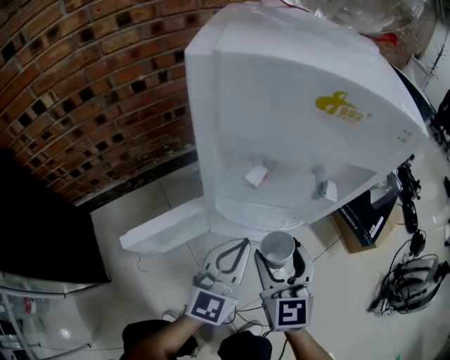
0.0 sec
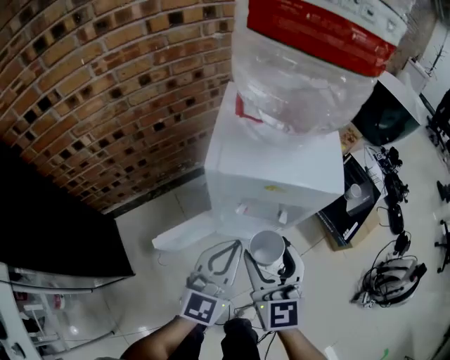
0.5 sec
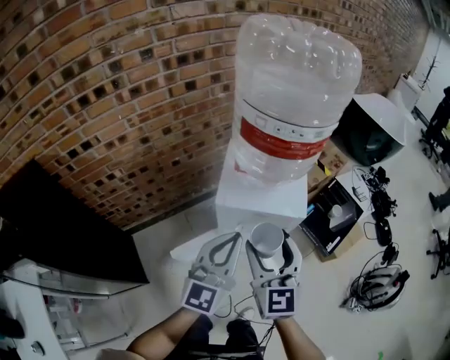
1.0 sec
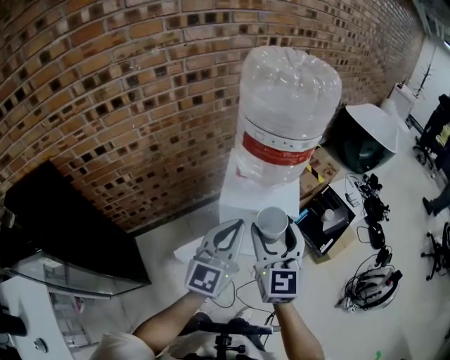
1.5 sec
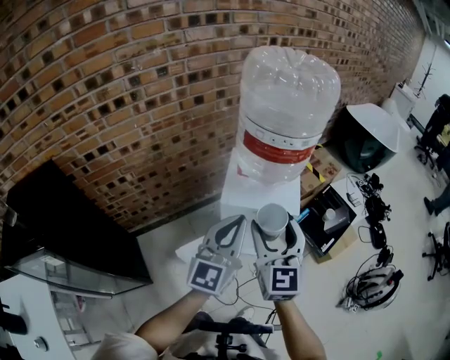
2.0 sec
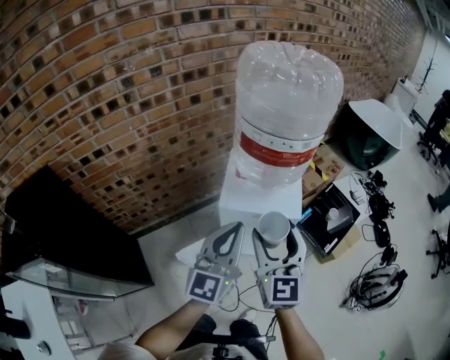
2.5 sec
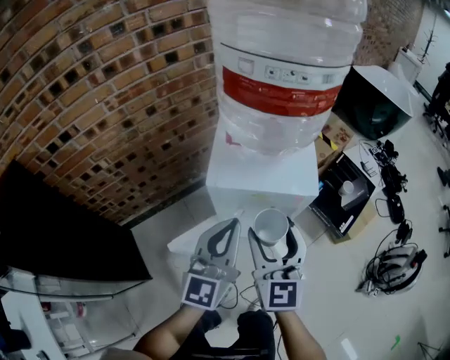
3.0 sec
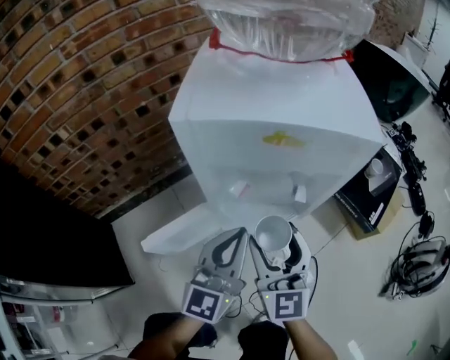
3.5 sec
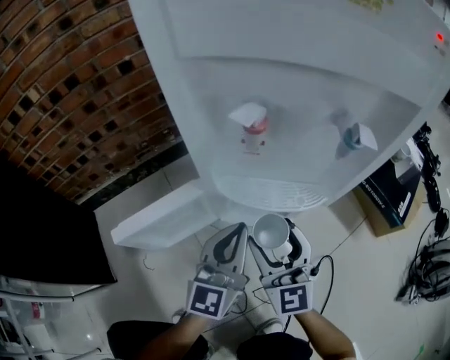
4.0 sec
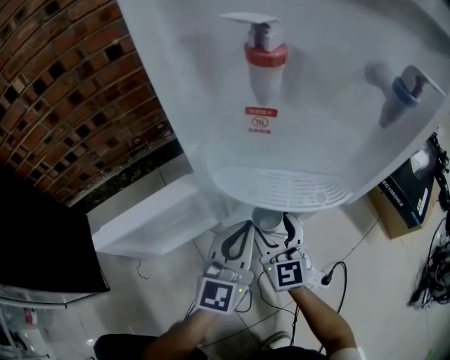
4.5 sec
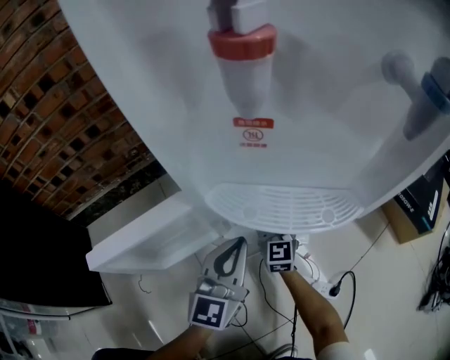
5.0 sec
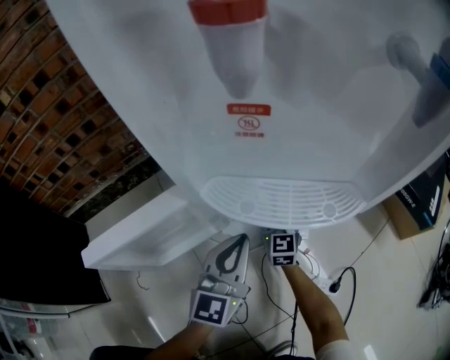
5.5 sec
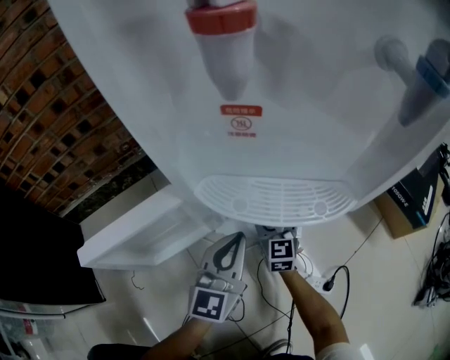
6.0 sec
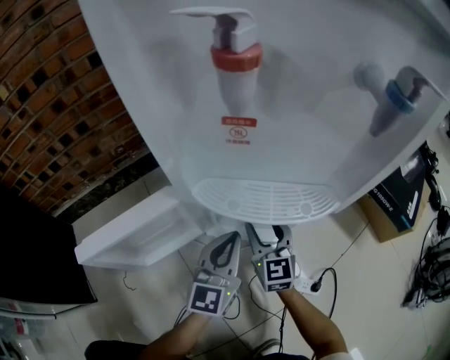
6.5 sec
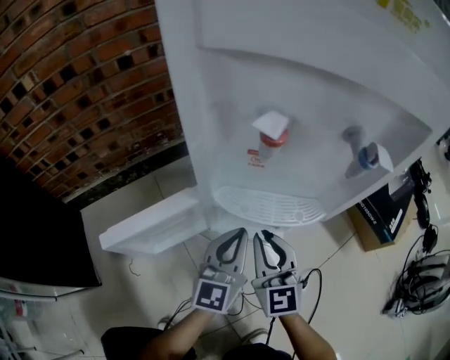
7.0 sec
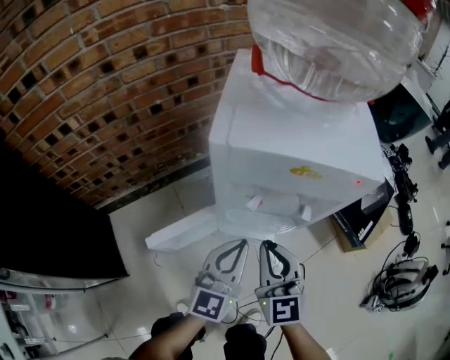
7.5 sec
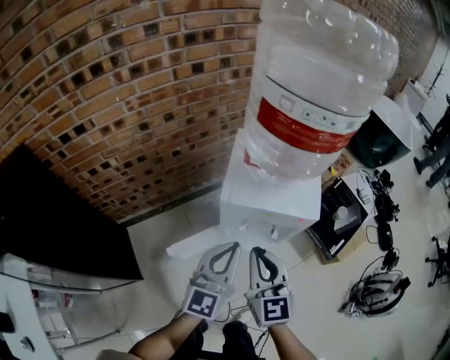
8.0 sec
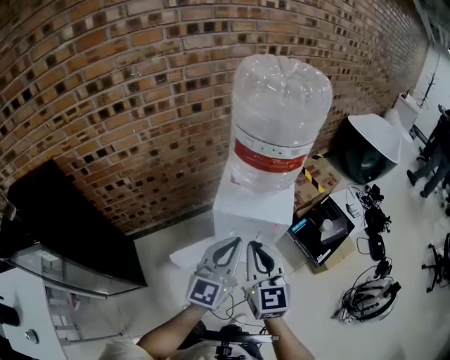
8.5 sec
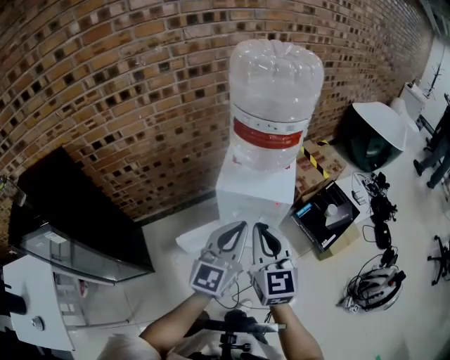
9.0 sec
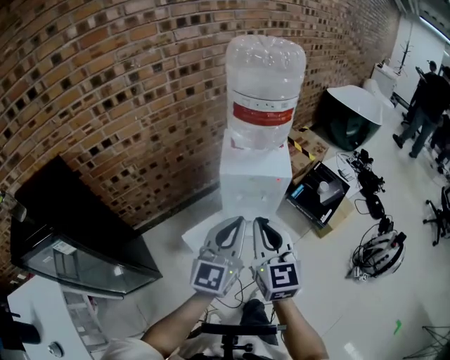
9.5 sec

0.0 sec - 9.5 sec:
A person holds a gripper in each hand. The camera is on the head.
0.0 sec - 2.0 sec: Both grippers travel together upward, about 50 cm.
2.0 sec - 4.0 sec: Both grippers travel together downward, about 60 cm.
4.0 sec - 5.5 sec: The right gripper heads downward and forward, covering about 30 cm, while the left gripper moves downward, roughly 15 cm.
5.5 sec - 7.5 sec: The right gripper is displaced upward and backward by about 50 cm, and closes its fingers. Meanwhile the left gripper travels upward by about 30 cm.
7.5 sec - 9.5 sec: The right gripper heads upward and backward, covering about 40 cm, while the left gripper moves upward, some 40 cm.

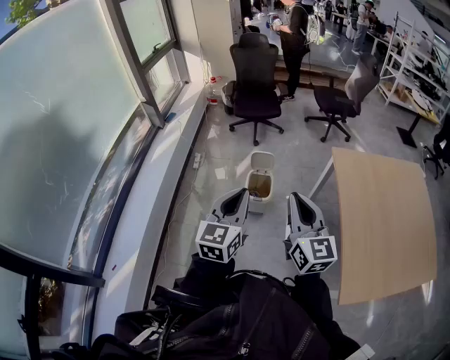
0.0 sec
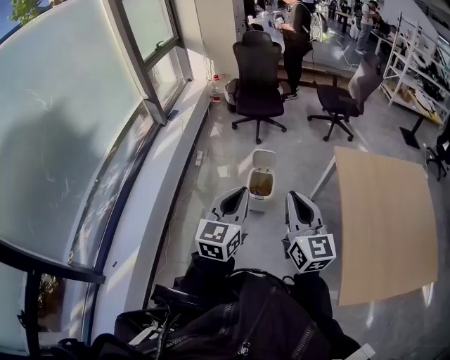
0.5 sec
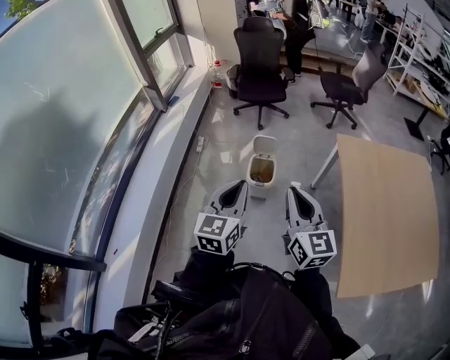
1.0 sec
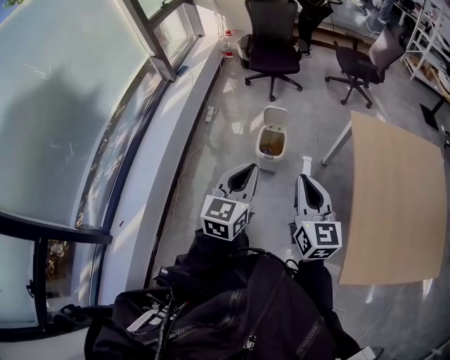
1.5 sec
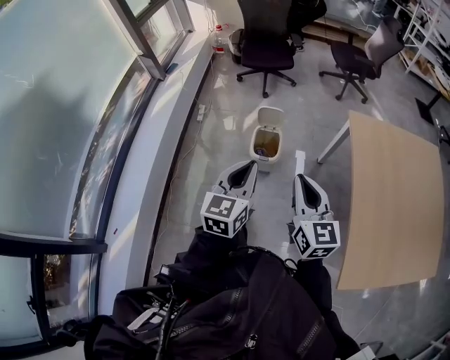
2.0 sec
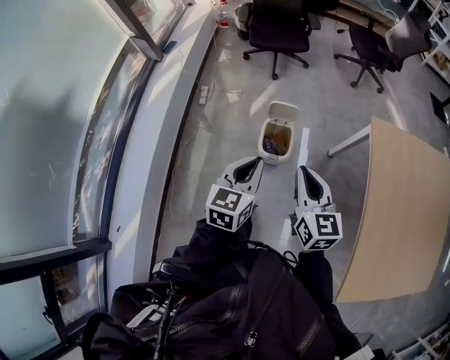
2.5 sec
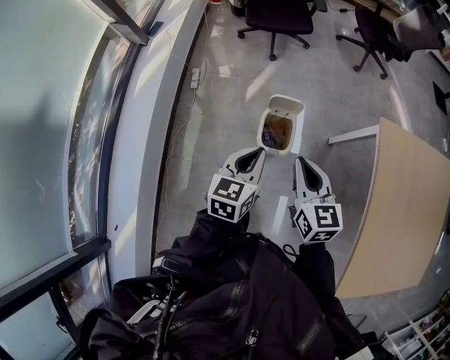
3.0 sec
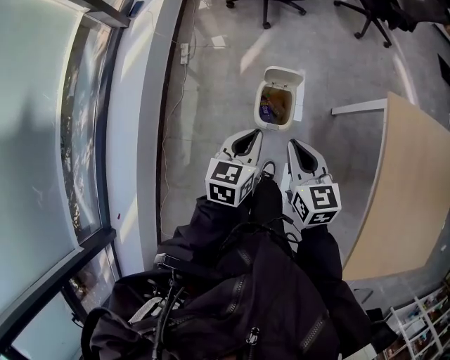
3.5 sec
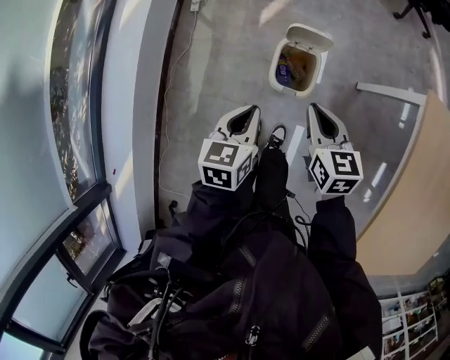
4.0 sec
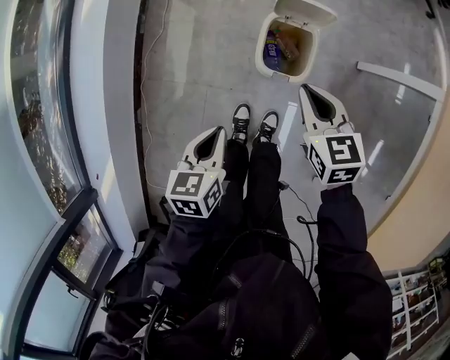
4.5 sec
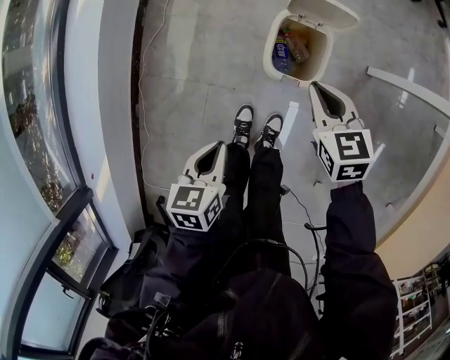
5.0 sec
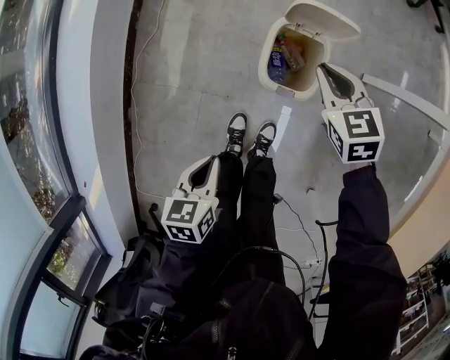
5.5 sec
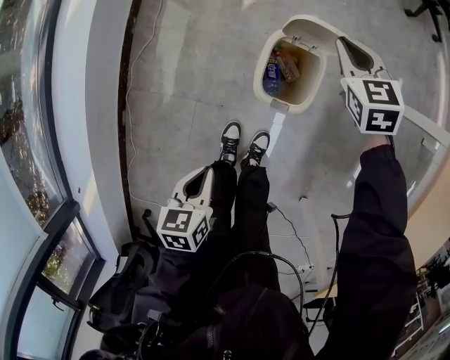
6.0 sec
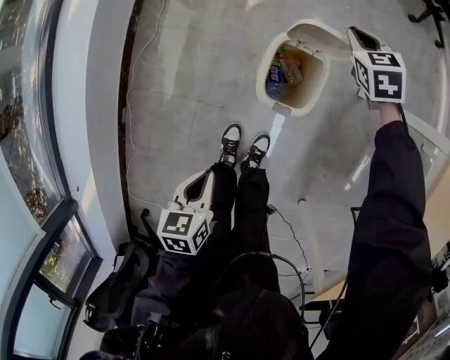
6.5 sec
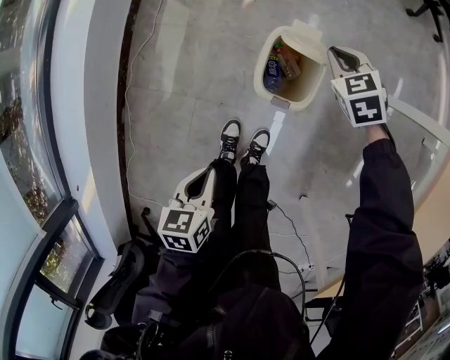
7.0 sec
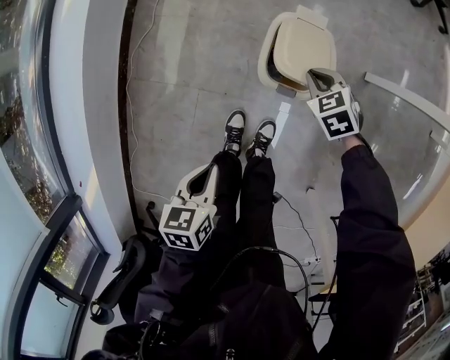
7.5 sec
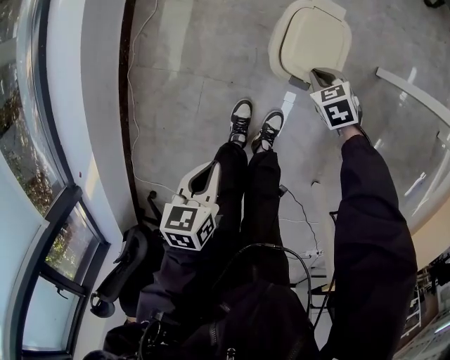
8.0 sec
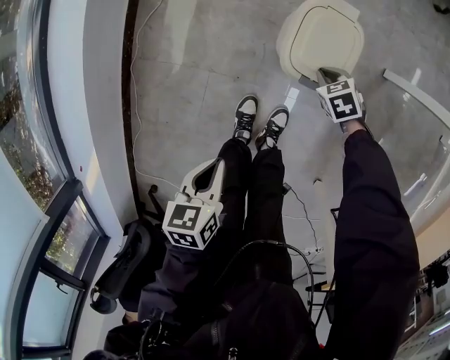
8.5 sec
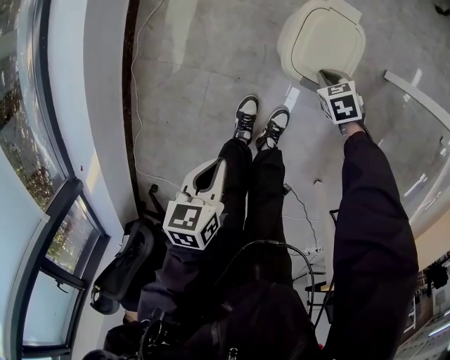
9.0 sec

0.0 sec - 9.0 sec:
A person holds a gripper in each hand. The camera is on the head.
0.0 sec - 2.0 sec: The right gripper travels downward by about 10 cm; the left gripper travels downward and forward by about 10 cm.
2.0 sec - 4.5 sec: Both grippers travel together downward and forward, approximately 50 cm. The right gripper points its fingers some 30 degrees further downward. Meanwhile the left gripper points its fingers roughly 40 degrees further downward.
4.5 sec - 7.0 sec: The right gripper shifts approximately 20 cm forward and downward, and turns by some 30 degrees, while the left gripper travels downward by approximately 10 cm.
7.0 sec - 9.0 sec: The left gripper moves approximately 5 cm, while the right gripper is displaced downward and backward by approximately 25 cm, and changes its angle by roughly 20 degrees.

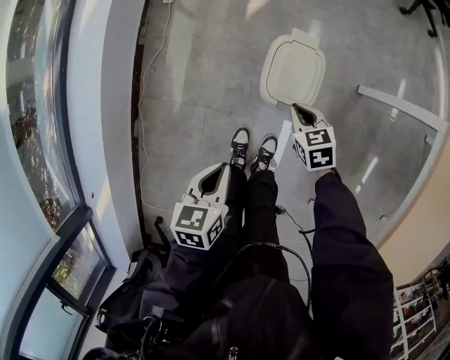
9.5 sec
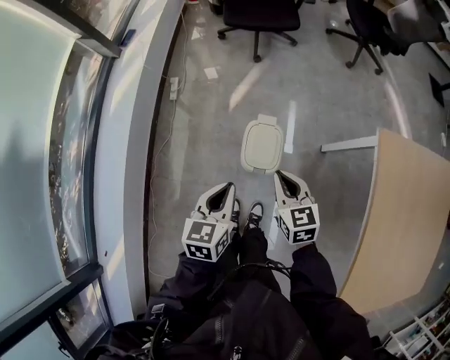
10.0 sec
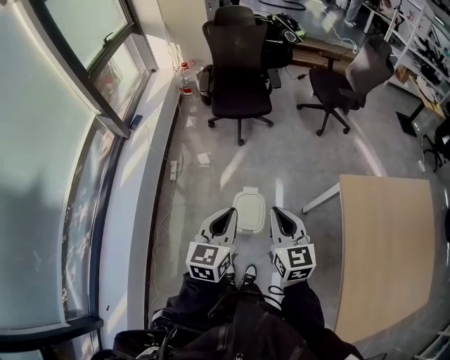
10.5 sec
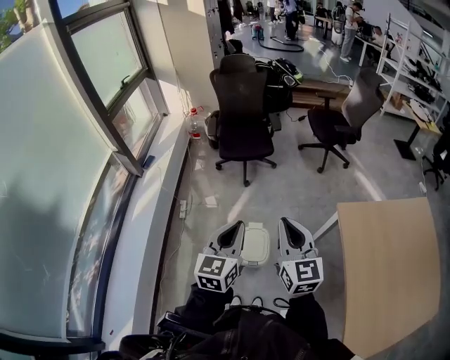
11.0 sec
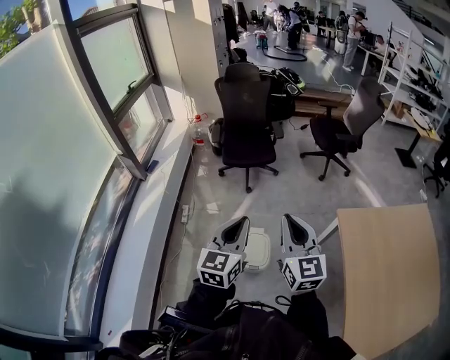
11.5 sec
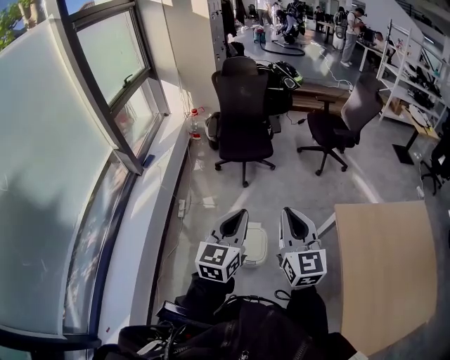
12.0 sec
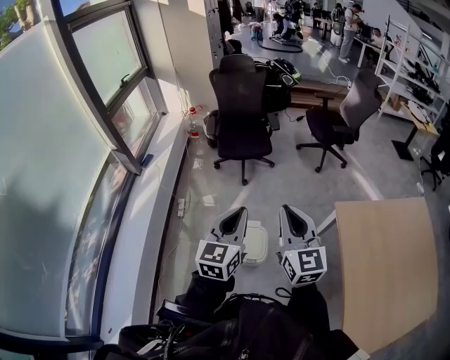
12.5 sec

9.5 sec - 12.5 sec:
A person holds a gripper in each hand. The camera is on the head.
9.5 sec - 11.0 sec: Both grippers move upward, approximately 60 cm. The left gripper points its fingers approximately 40 degrees further upward. The right gripper tips its fingers upward by approximately 50 degrees.
11.0 sec - 12.5 sec: The grippers stay close to where they were, moving slightly.

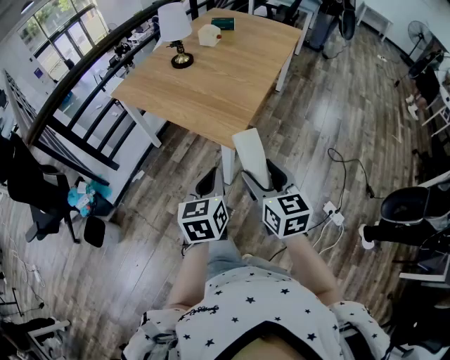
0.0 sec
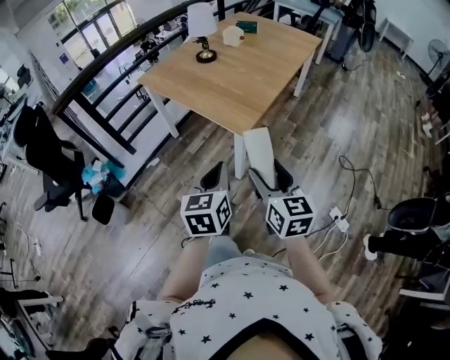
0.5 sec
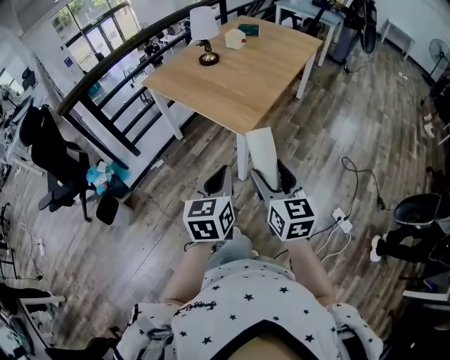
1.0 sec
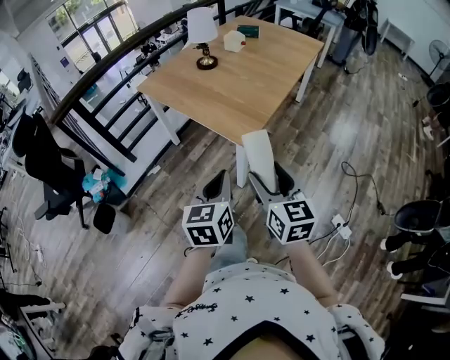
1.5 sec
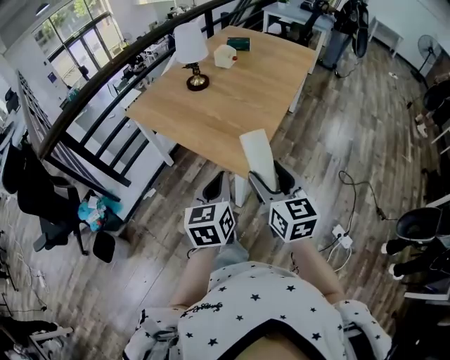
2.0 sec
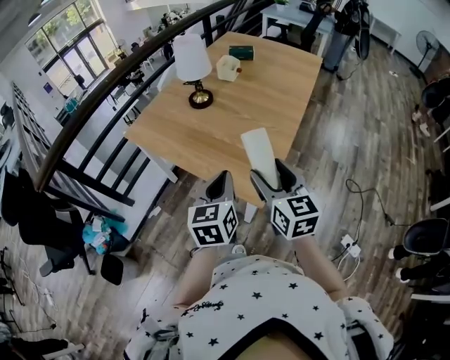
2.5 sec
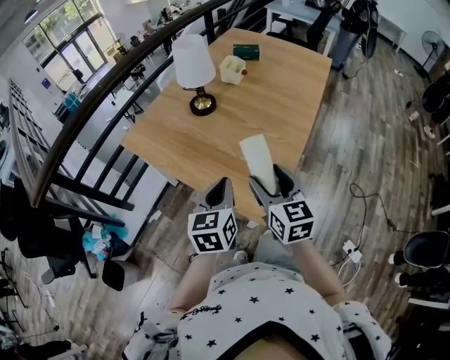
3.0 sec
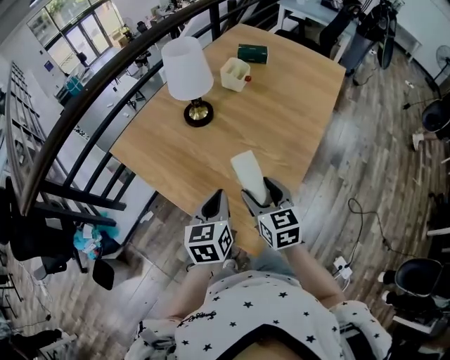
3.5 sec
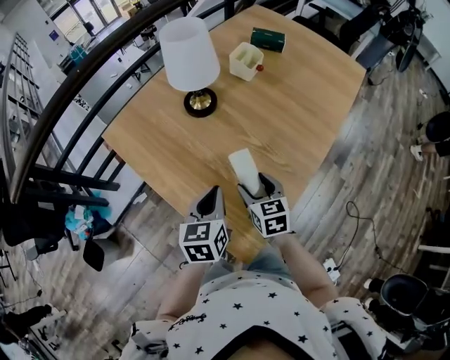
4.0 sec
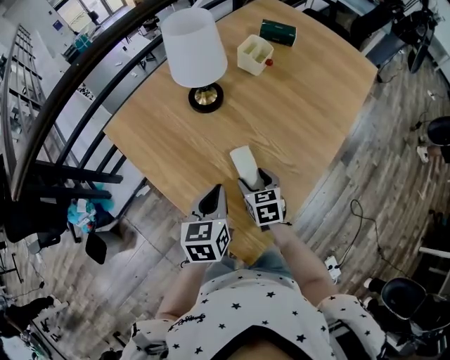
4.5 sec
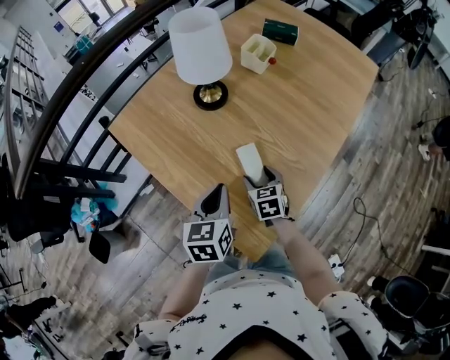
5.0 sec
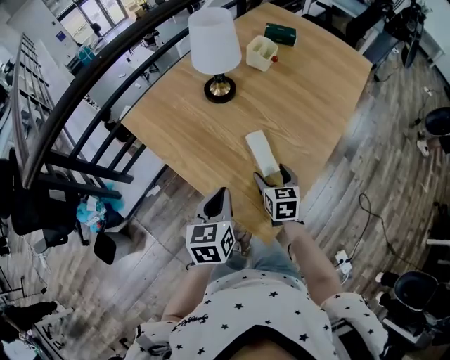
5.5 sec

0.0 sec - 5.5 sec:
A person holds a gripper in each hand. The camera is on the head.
0.0 sec - 2.0 sec: Both grippers move forward, some 10 cm.
2.0 sec - 3.5 sec: The grippers both shift forward by approximately 30 cm.
3.5 sec - 5.5 sec: The right gripper shifts approximately 10 cm downward, while the left gripper is displaced to the left by approximately 5 cm, and travels forward and back again, roughly 5 cm each way.
